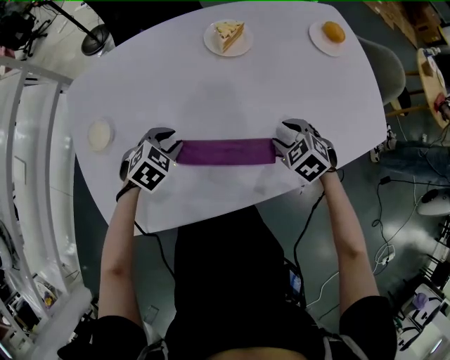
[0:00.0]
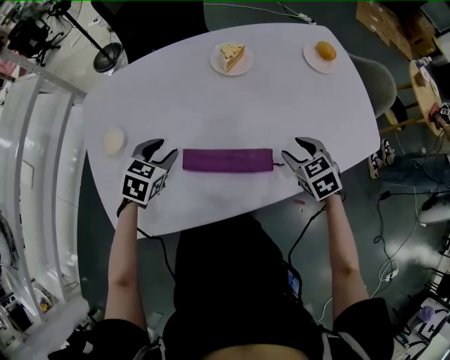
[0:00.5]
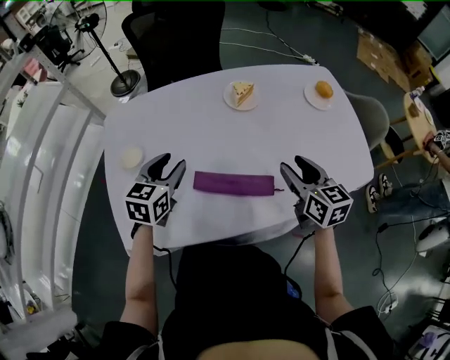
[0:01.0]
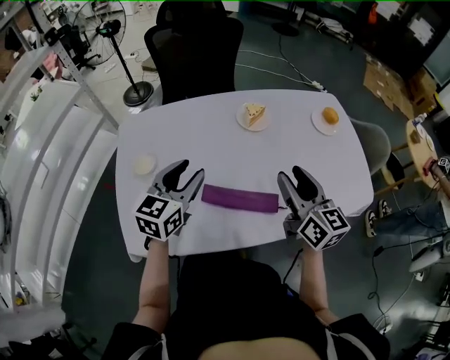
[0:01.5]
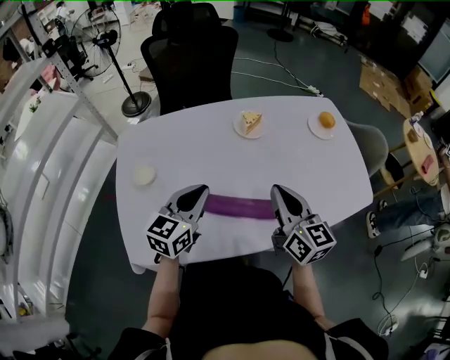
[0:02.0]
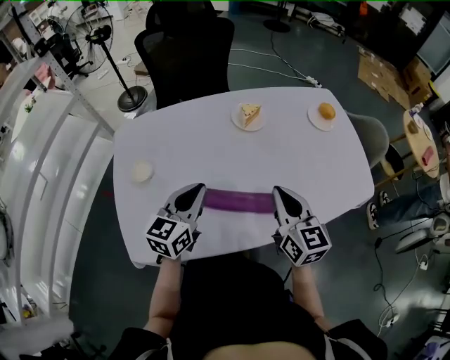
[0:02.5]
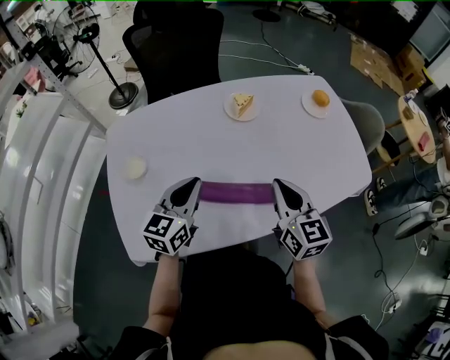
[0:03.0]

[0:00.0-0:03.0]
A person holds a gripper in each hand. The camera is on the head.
0.0 to 1.5 s: Both grippers move upward, approximately 25 cm. The left gripper angles its fingers upward, by approximately 40 degrees. The right gripper points its fingers approximately 60 degrees further upward.
1.5 to 3.0 s: The right gripper ends up about 5 cm from where it was, and closes, while the left gripper changes place by roughly 5 cm, and closes its fingers.

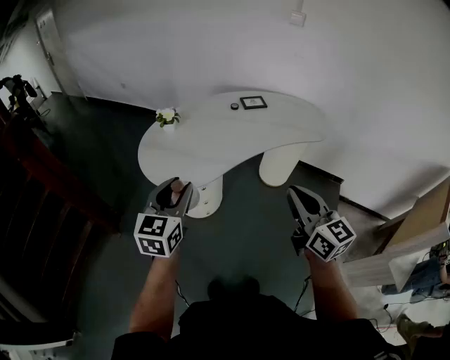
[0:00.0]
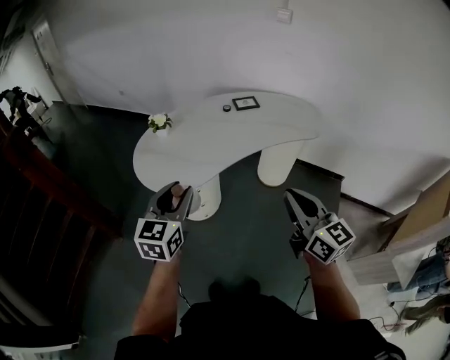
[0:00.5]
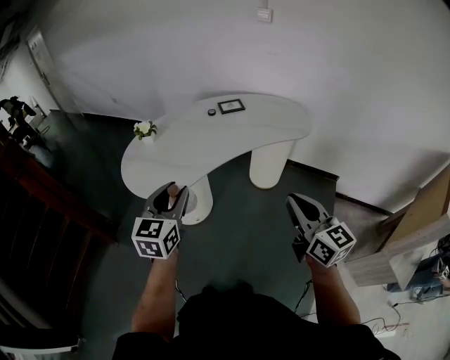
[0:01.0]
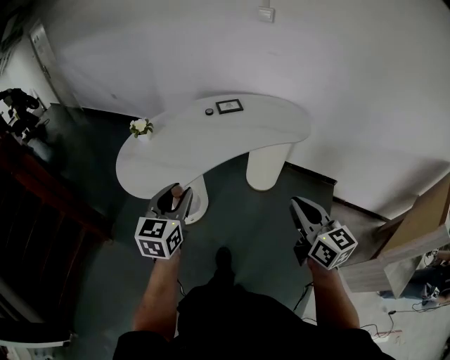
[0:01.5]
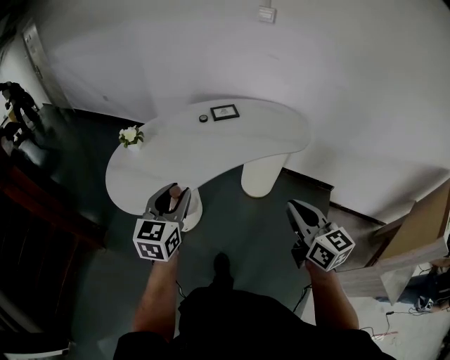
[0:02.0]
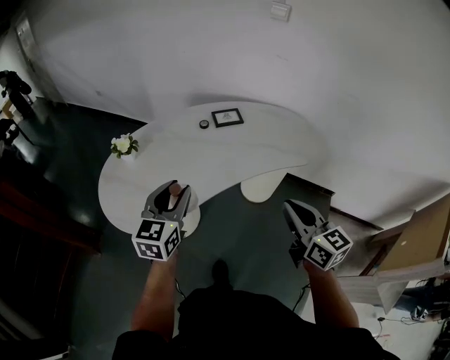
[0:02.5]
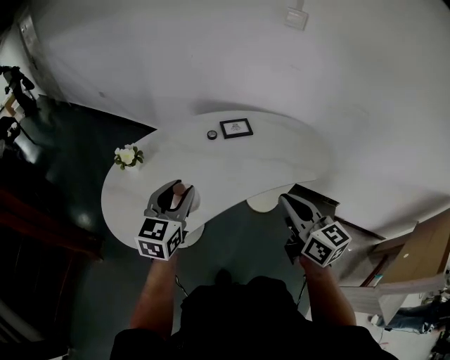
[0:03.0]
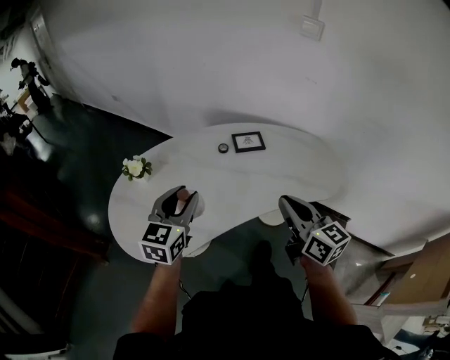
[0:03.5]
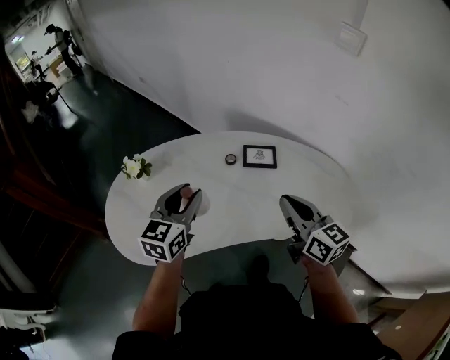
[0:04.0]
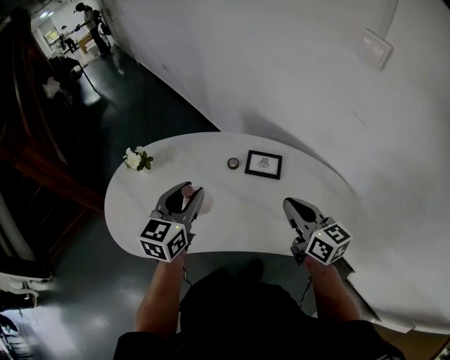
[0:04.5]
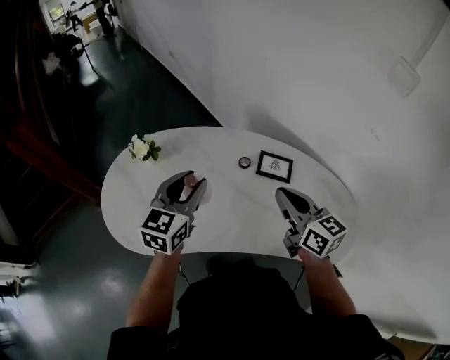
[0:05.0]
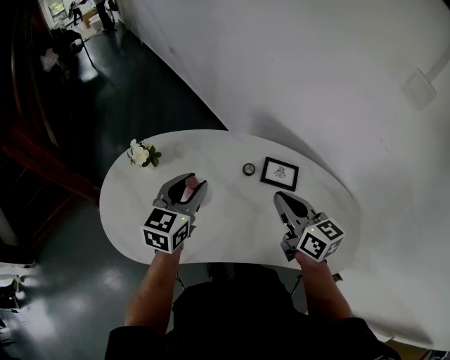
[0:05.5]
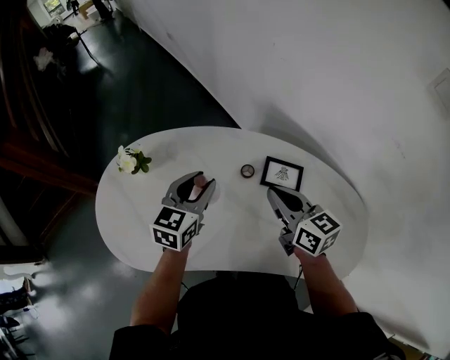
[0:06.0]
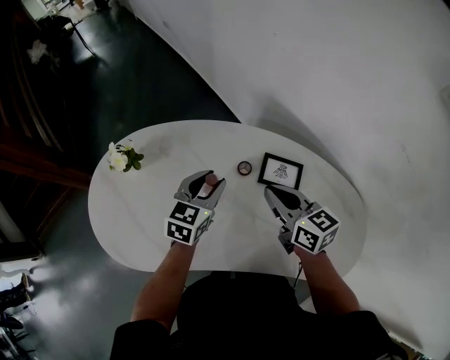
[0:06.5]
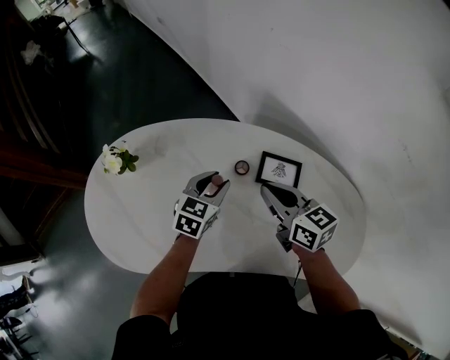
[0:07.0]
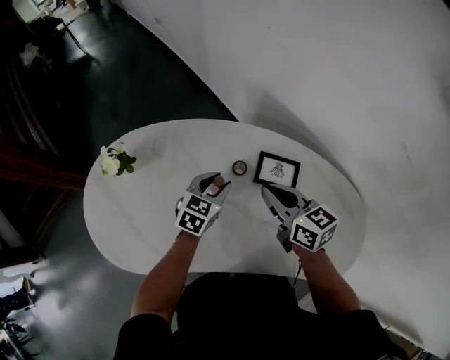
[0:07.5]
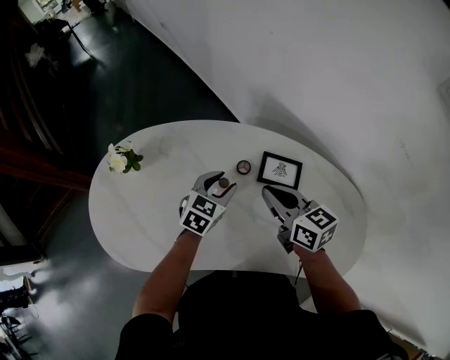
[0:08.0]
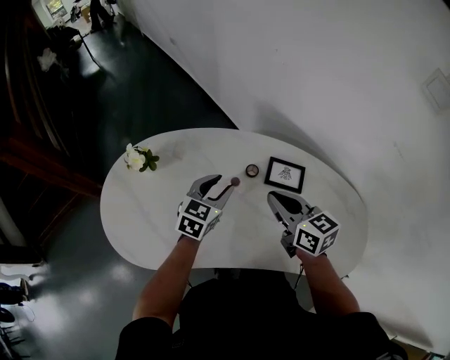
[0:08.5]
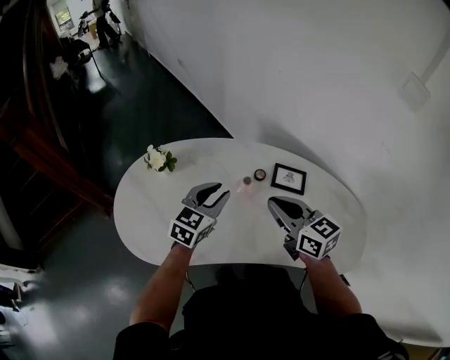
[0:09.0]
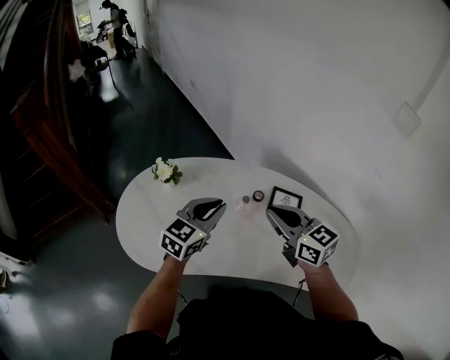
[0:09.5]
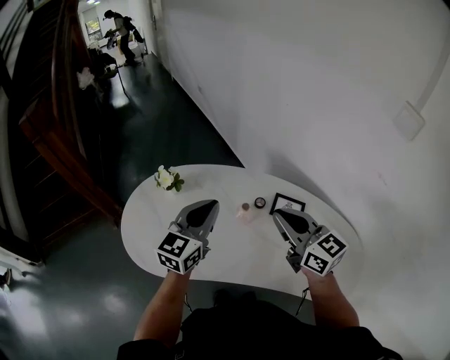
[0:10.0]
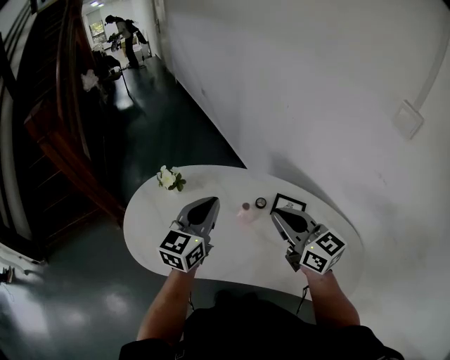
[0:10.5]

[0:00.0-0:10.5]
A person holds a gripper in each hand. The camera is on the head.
0.0 to 2.0 s: The right gripper goes approximately 20 cm to the right. The left gripper is displaced to the right and forward by approximately 20 cm.
2.0 to 4.0 s: The grippers both shift forward by some 35 cm. The right gripper swivels about 20 degrees.
4.0 to 6.5 s: The left gripper travels forward, downward and to the right by about 25 cm, while the right gripper is displaced forward and downward by roughly 25 cm, and swivels some 20 degrees.
6.5 to 8.5 s: The left gripper moves some 10 cm downward and comes back, while the right gripper ends up some 5 cm from where it was.
8.5 to 10.5 s: The left gripper moves upward, roughly 20 cm, changes its angle by some 30 degrees, and closes; the right gripper shifts some 15 cm upward and backward, and swivels approximately 20 degrees.

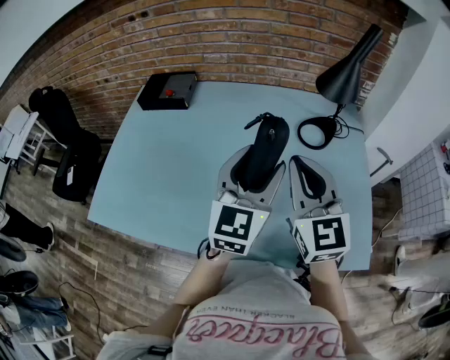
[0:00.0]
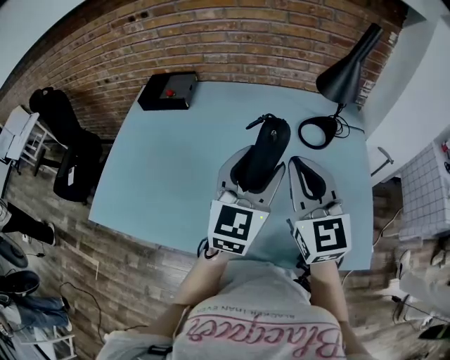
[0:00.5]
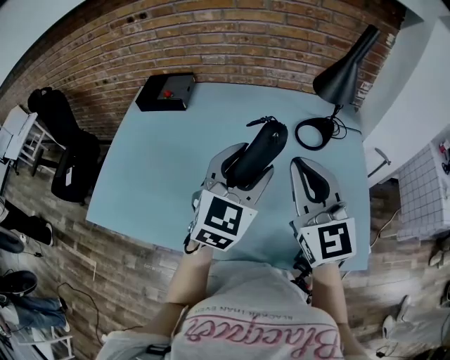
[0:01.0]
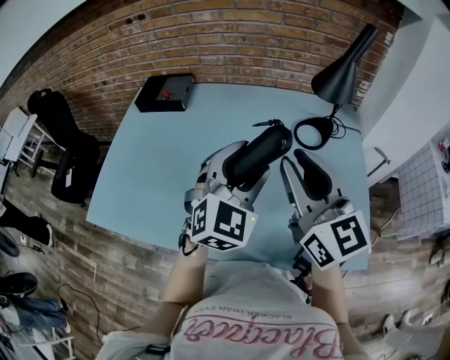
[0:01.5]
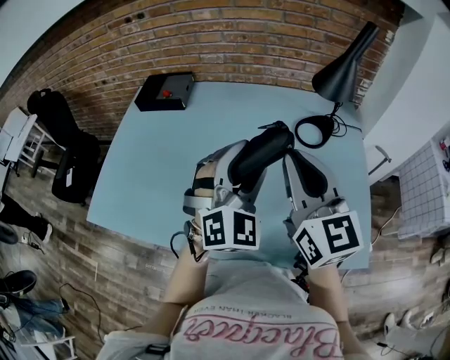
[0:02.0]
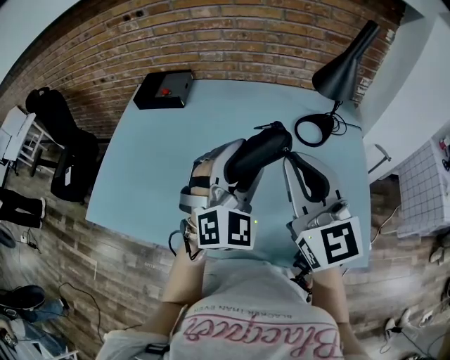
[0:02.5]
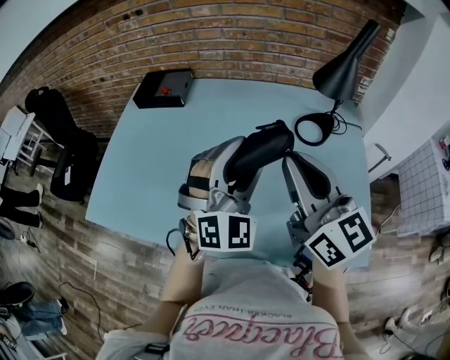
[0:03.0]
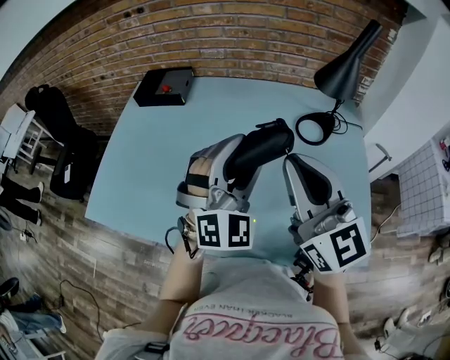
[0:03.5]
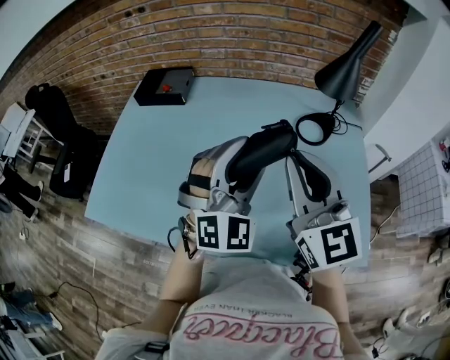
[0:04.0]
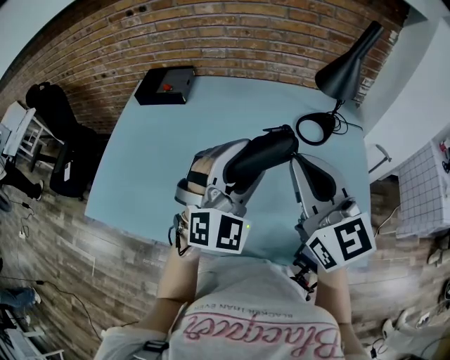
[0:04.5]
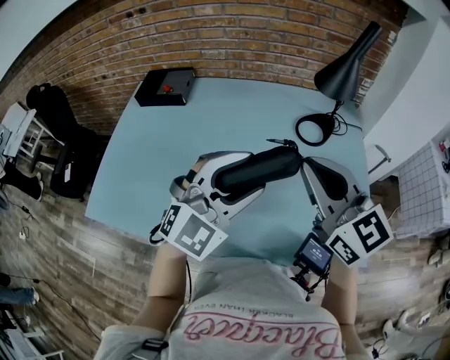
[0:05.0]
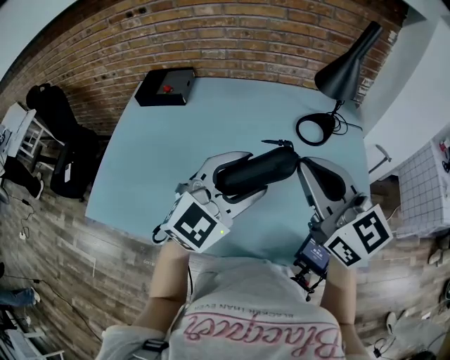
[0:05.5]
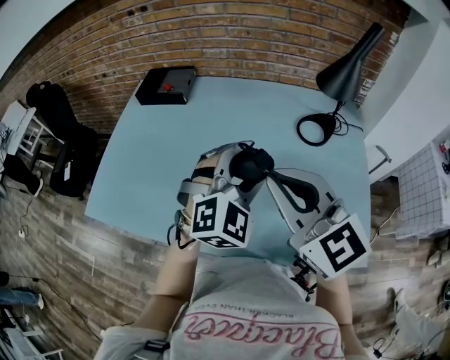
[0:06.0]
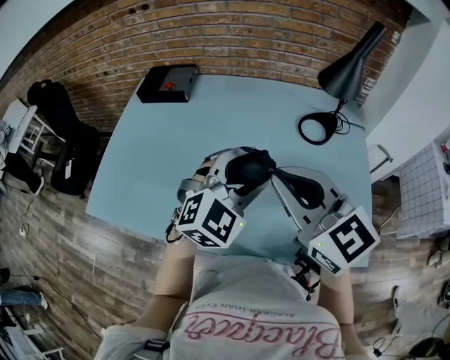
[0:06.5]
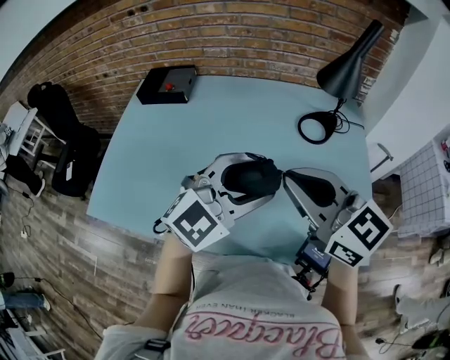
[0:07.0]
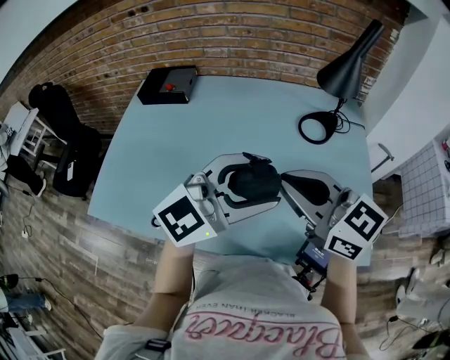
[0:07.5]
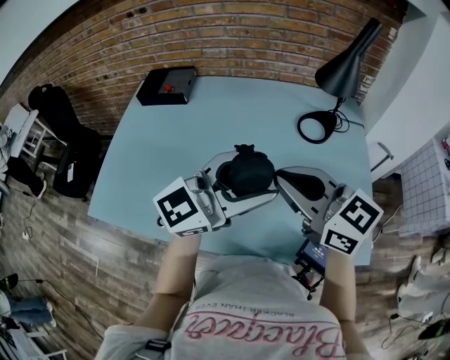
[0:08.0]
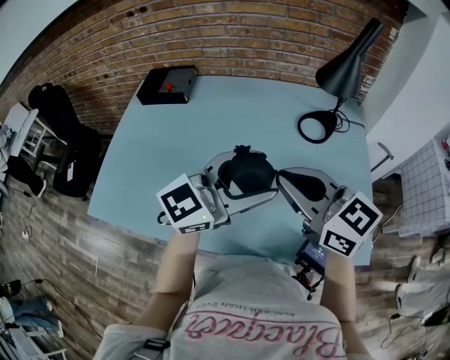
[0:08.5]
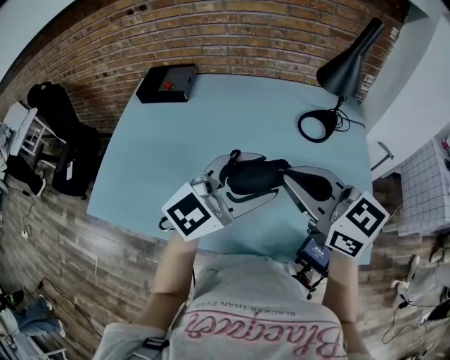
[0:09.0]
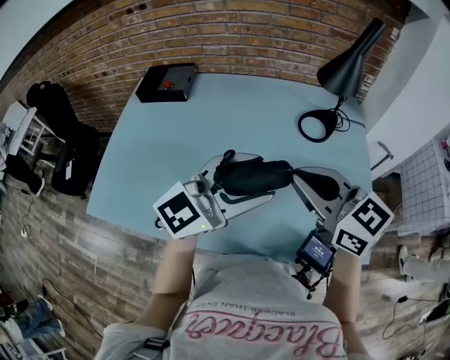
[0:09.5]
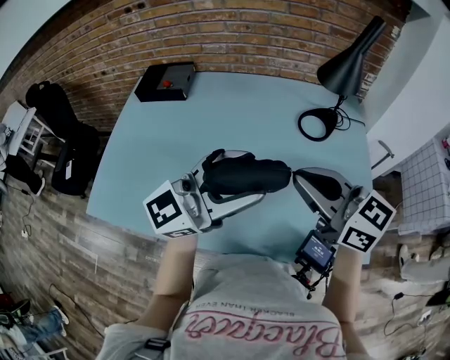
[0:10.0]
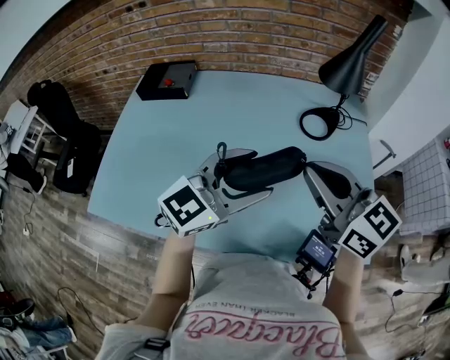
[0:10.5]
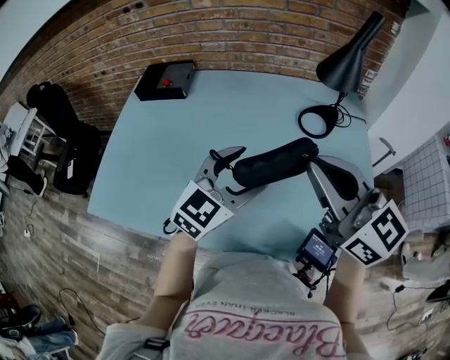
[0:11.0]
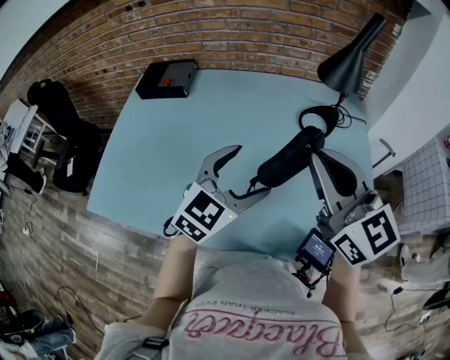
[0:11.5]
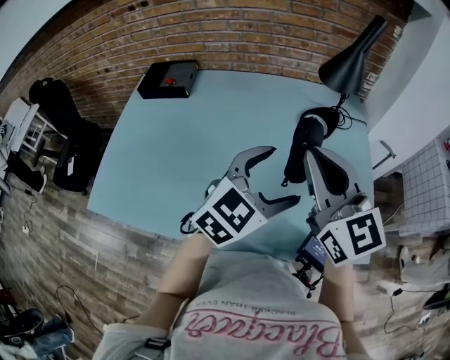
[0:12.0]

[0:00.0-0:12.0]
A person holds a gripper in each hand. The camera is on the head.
0.0 to 2.0 s: The left gripper twists approximately 40 degrees clockwise, seen from behind.
2.0 to 4.0 s: The grippers make only small movements.
4.0 to 6.0 s: The right gripper changes place by approximately 5 cm.
6.0 to 8.0 s: The left gripper goes about 10 cm upward and backward, and points its fingers about 30 degrees further upward; the right gripper rotates roughly 20 degrees.
8.0 to 10.0 s: There are only small adjustments of the grippers.
10.0 to 12.0 s: The right gripper changes its angle by roughly 30 degrees. Meanwhile the left gripper is displaced to the right and downward by approximately 10 cm, tips its fingers downward by roughly 40 degrees, and opens.

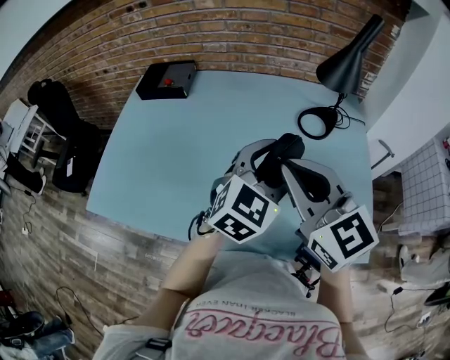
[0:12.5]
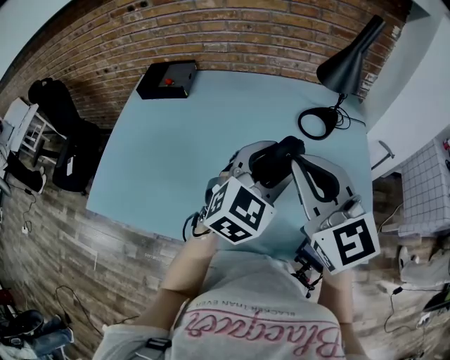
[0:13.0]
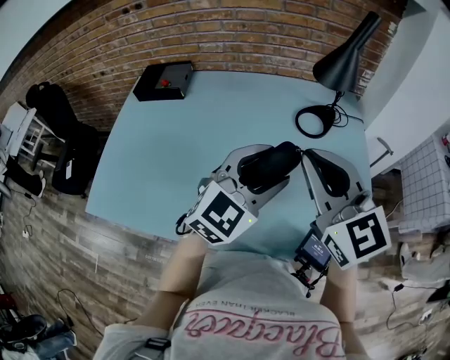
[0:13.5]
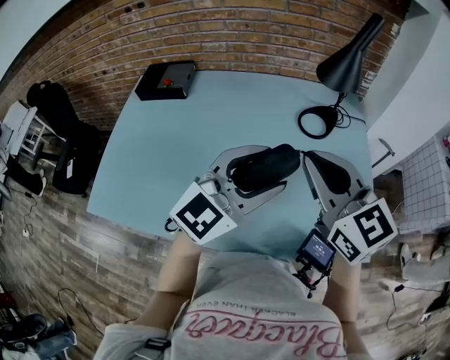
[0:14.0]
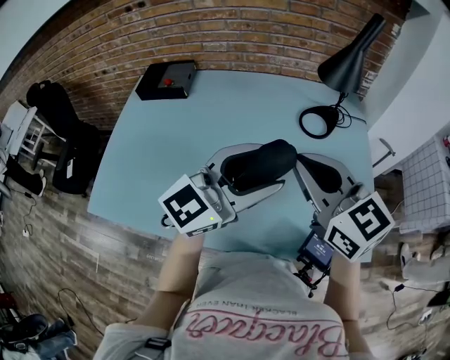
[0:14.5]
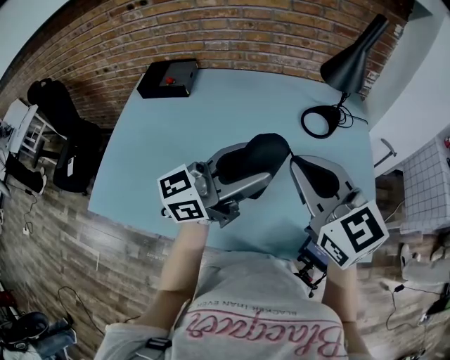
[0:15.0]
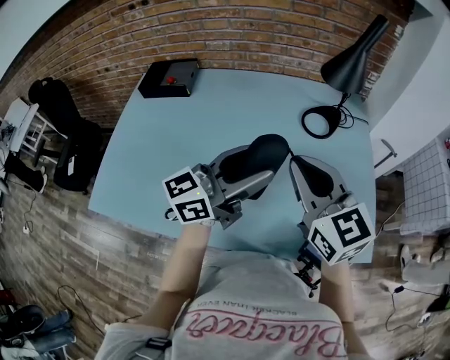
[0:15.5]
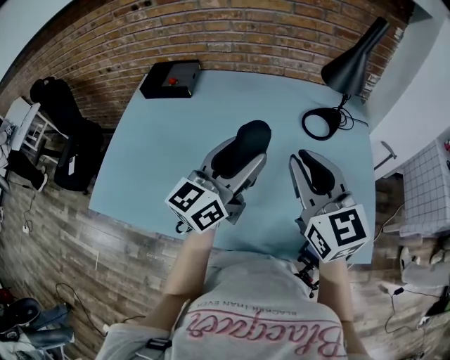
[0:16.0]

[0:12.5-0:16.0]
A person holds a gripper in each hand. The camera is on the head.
12.5 to 14.5 s: The left gripper moves upward, approximately 5 cm, and changes its angle by some 30 degrees.
14.5 to 16.0 s: The left gripper heads to the left, covering about 5 cm, and swivels approximately 30 degrees.
